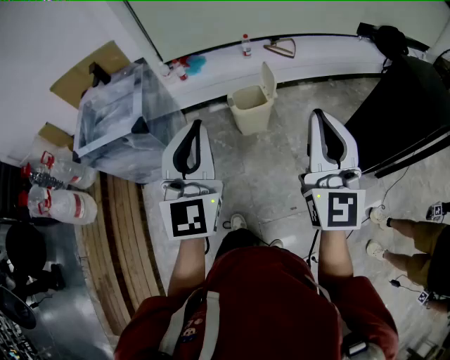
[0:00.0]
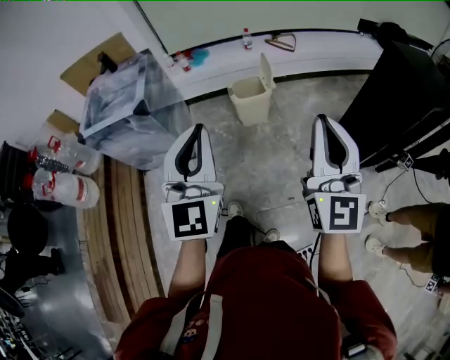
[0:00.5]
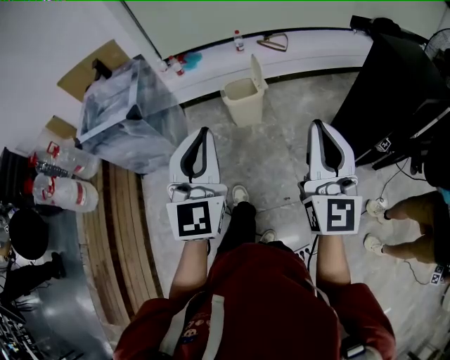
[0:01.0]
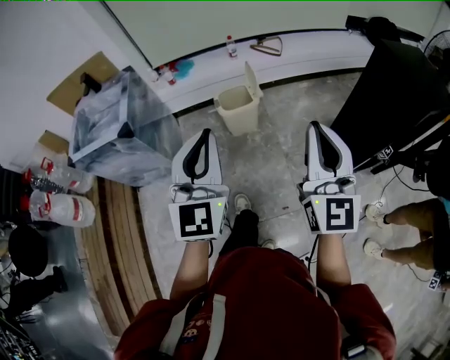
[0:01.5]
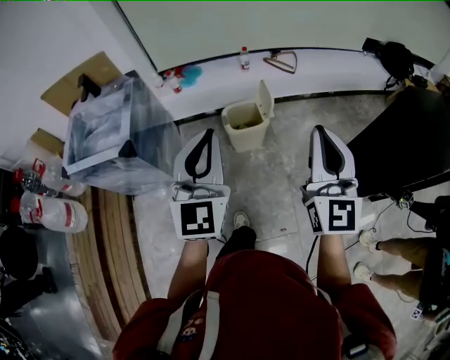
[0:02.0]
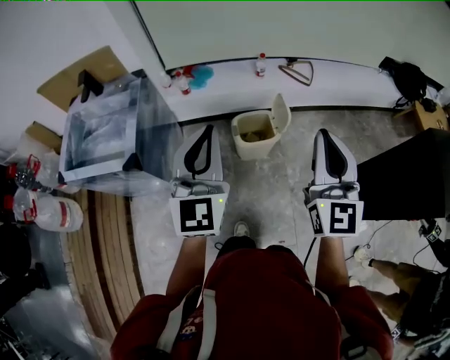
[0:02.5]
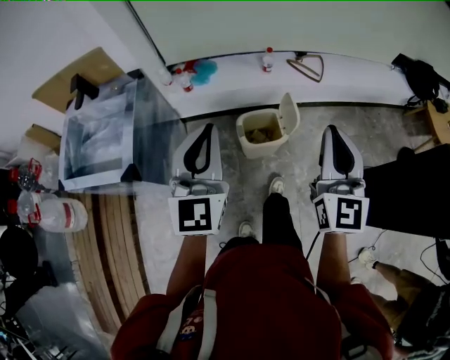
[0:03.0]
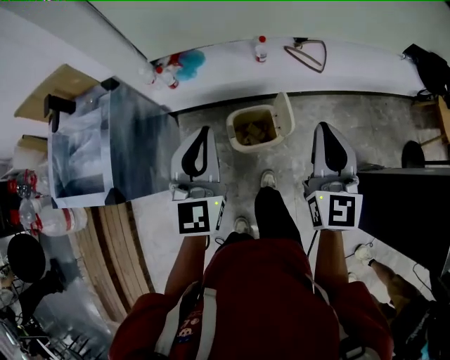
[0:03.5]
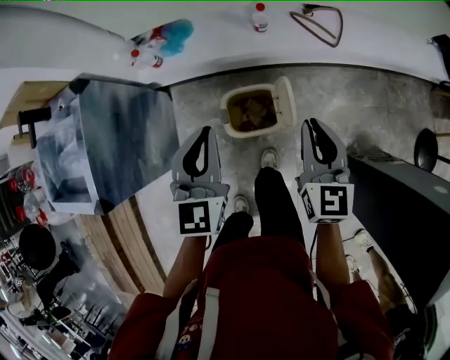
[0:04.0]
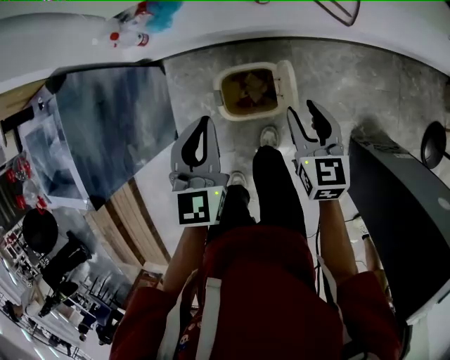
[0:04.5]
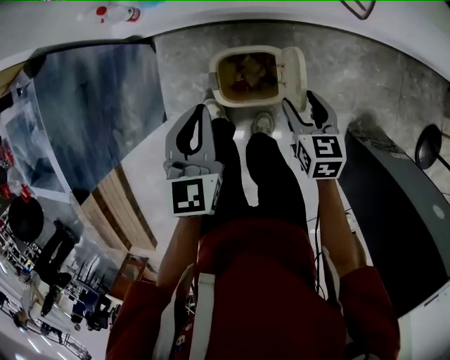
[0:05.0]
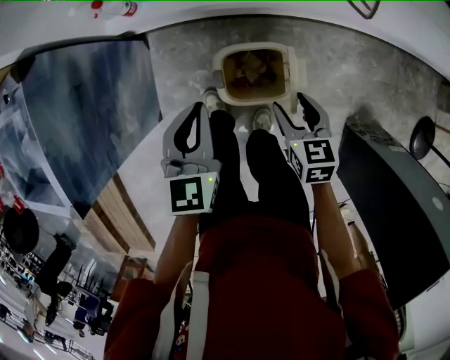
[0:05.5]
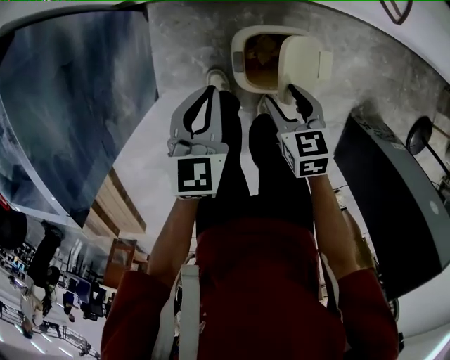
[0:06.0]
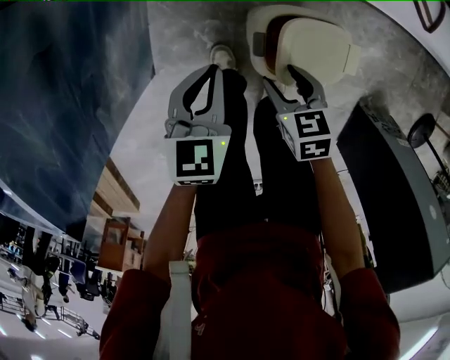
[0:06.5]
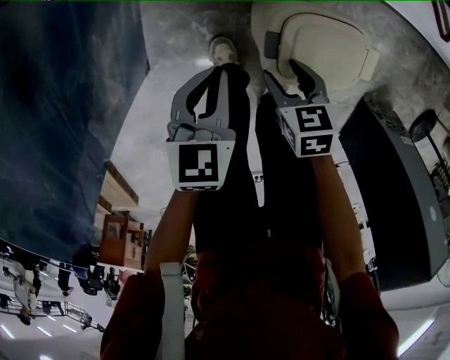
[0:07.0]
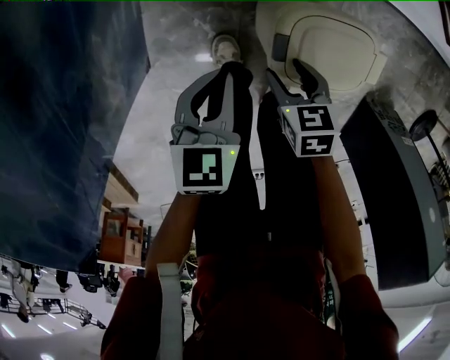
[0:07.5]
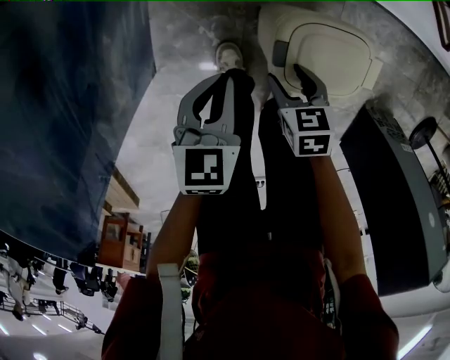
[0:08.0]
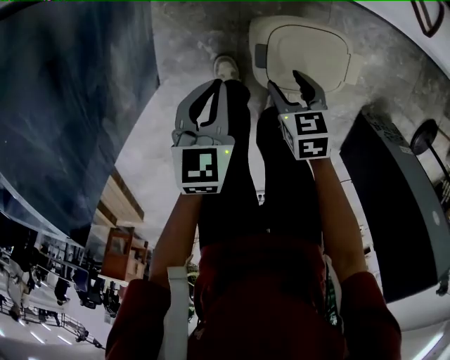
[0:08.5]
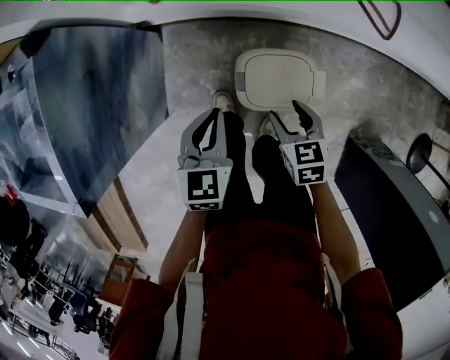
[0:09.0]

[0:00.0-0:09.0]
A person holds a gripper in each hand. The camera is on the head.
0:00.0 to 0:02.0: Both grippers move forward and to the right, some 15 cm.
0:02.0 to 0:04.5: Both grippers are carried forward, some 50 cm. The grippers both shift downward by roughly 35 cm. The left gripper points its fingers roughly 30 degrees further downward. The right gripper tips its fingers downward by approximately 40 degrees, and opens up.
0:04.5 to 0:07.0: Both grippers move downward and to the left, about 40 cm. The right gripper angles its fingers downward, by some 30 degrees. The left gripper changes its angle by some 30 degrees.
0:07.0 to 0:09.0: The right gripper moves upward and to the right, approximately 20 cm; the left gripper heads upward, covering about 15 cm.

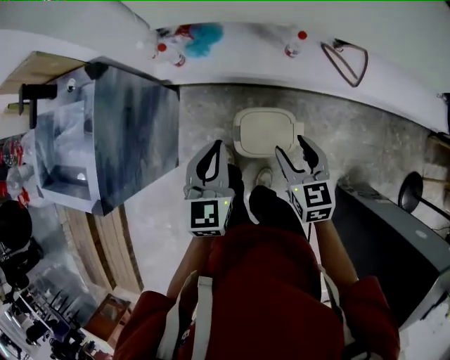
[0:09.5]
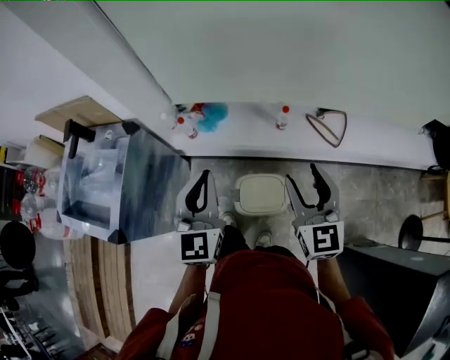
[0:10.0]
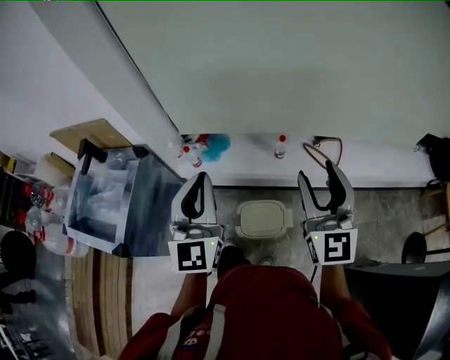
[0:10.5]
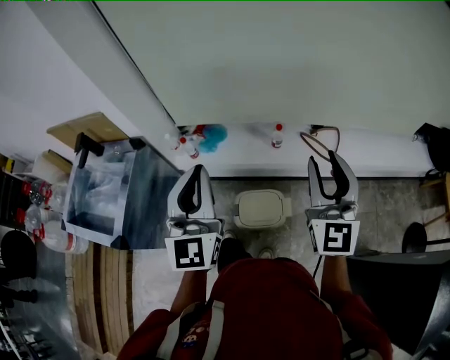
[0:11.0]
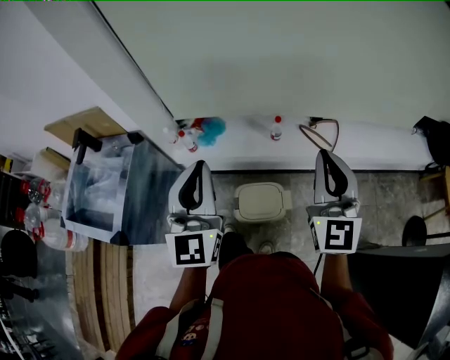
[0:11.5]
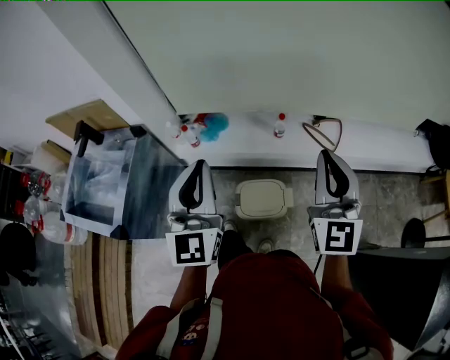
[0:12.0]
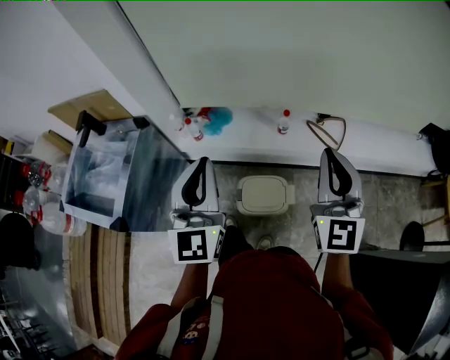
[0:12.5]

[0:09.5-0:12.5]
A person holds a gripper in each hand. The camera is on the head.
0:09.5 to 0:11.0: Both grippers travel together upward, approximately 30 cm. The right gripper tilts its fingers about 40 degrees upward, and closes its fingers; the left gripper points its fingers about 40 degrees further upward.
0:11.0 to 0:12.5: The right gripper closes up.

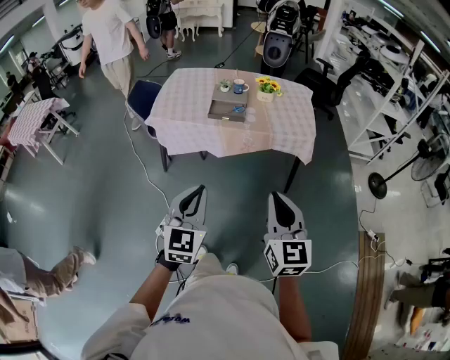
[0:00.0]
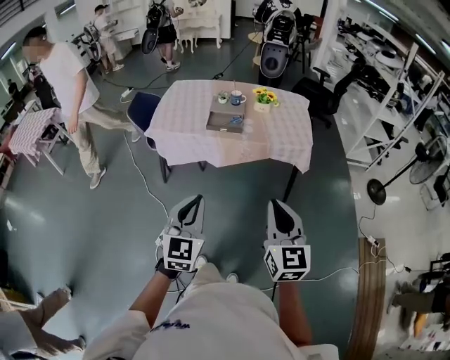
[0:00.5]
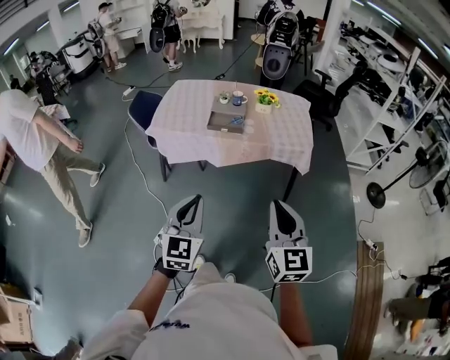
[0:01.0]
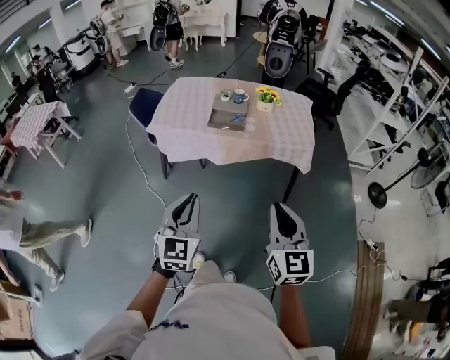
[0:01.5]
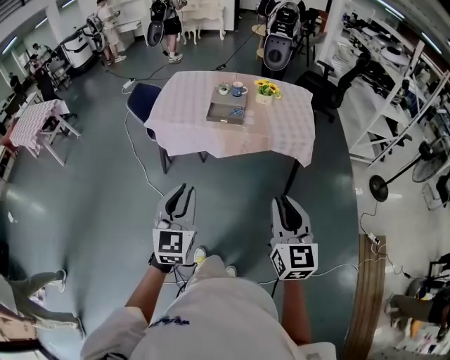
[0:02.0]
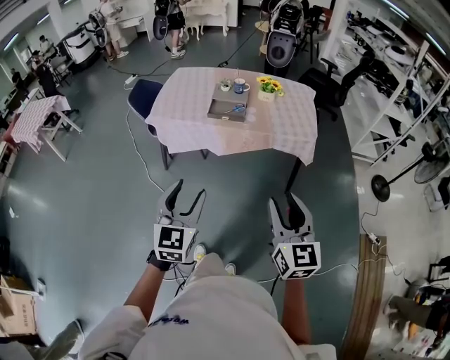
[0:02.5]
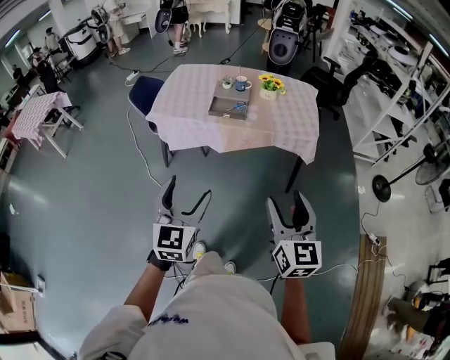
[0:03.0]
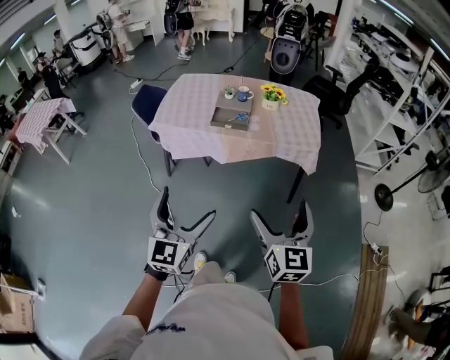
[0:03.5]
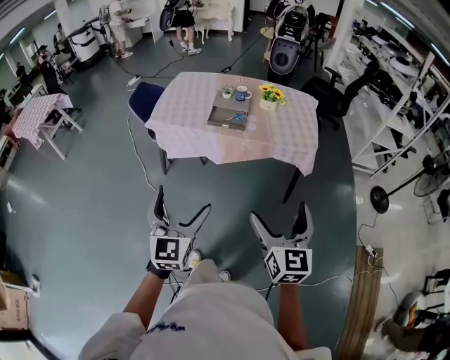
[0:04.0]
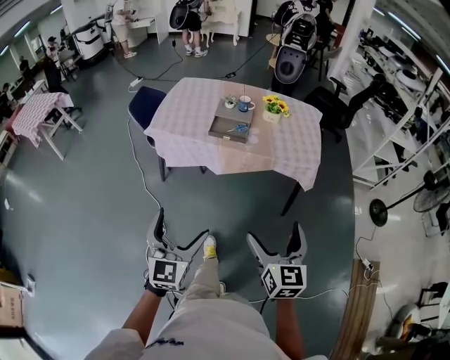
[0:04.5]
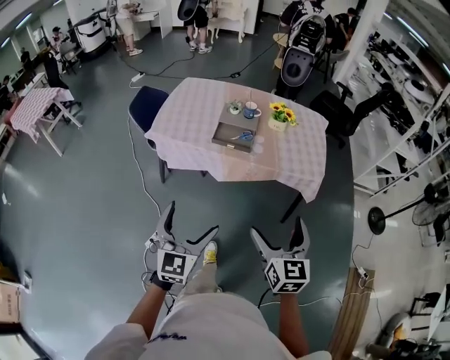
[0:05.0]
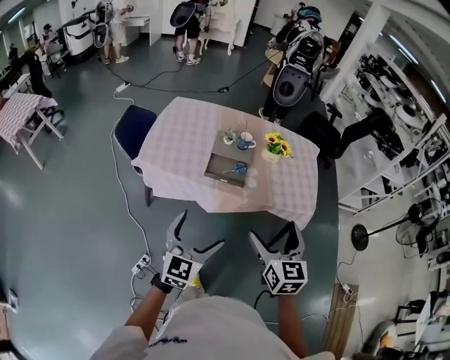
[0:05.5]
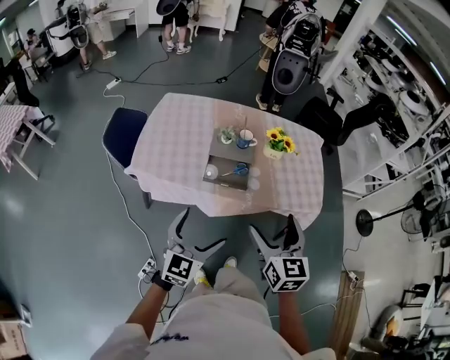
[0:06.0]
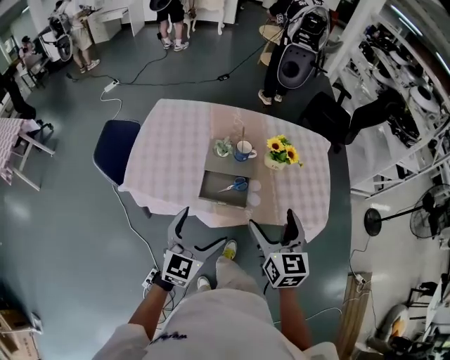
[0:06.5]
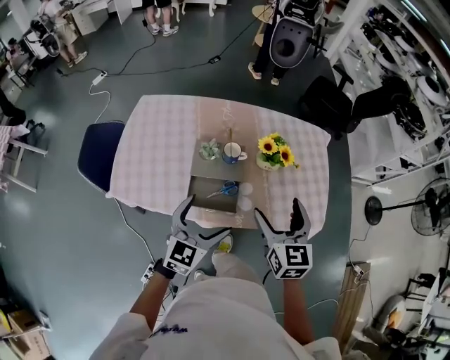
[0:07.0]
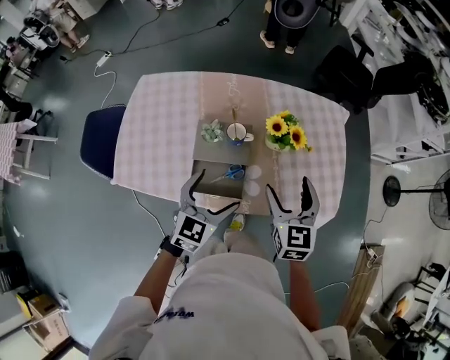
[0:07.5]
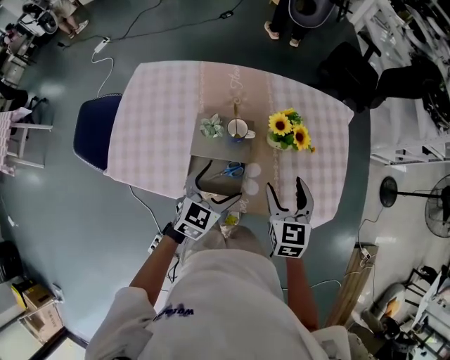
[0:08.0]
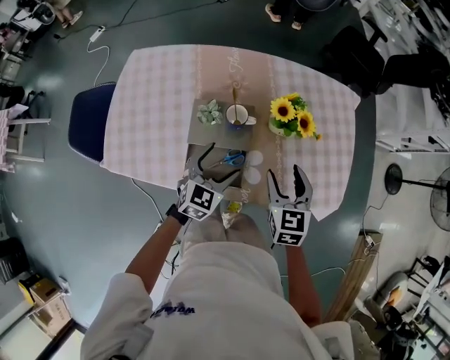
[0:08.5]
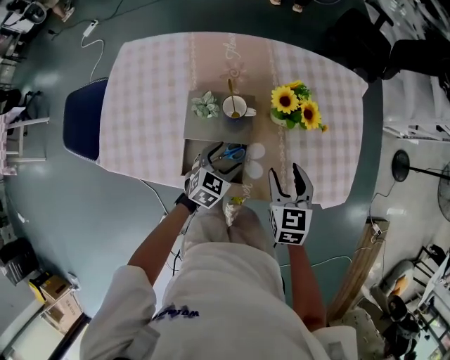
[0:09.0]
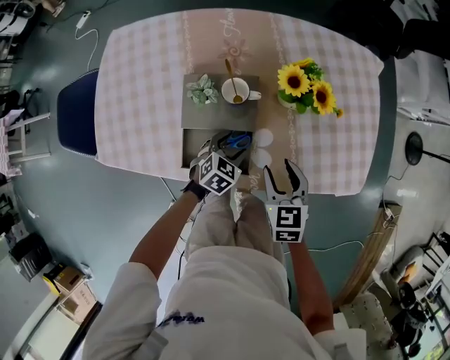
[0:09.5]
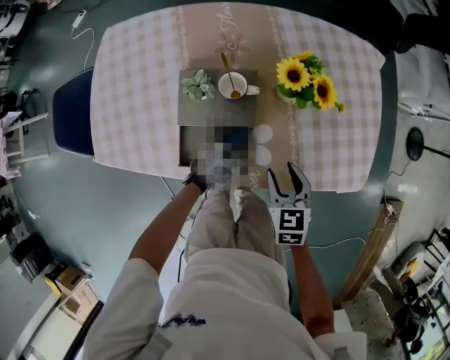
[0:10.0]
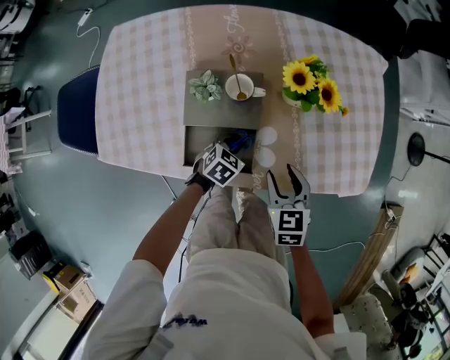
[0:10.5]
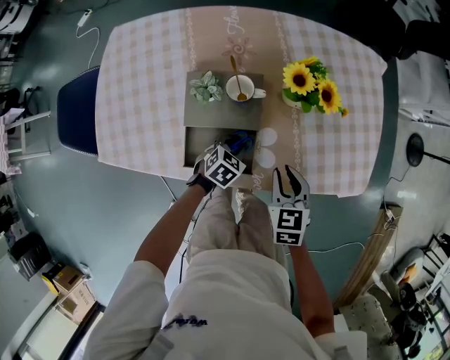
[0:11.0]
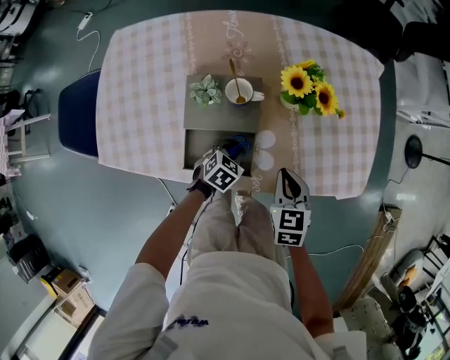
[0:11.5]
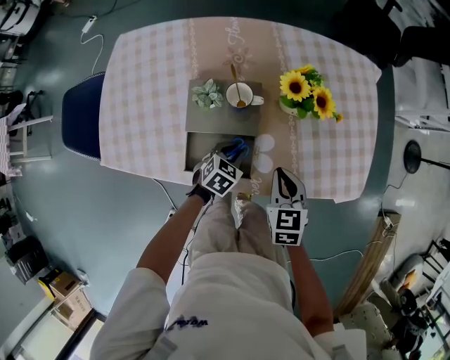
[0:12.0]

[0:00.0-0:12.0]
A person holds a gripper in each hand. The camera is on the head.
0:00.0 to 0:02.0: There are only small adjustments of the grippers.
0:02.0 to 0:04.0: The left gripper opens, while the right gripper ends up approximately 5 cm from where it was, and opens up.
0:04.0 to 0:06.0: Both grippers move forward, about 35 cm. The left gripper rotates approximately 20 degrees.
0:06.0 to 0:08.0: The right gripper heads forward and downward, covering about 35 cm; the left gripper travels forward by about 35 cm.
0:08.0 to 0:10.0: The right gripper is displaced downward by approximately 15 cm; the left gripper is displaced downward by about 25 cm, rotates roughly 30 degrees, and closes its fingers.
0:10.0 to 0:12.0: The right gripper closes up.

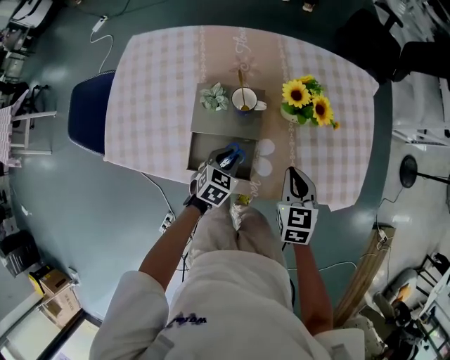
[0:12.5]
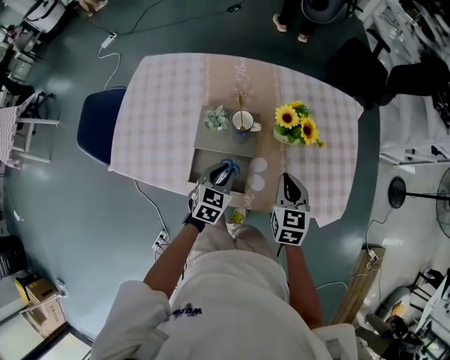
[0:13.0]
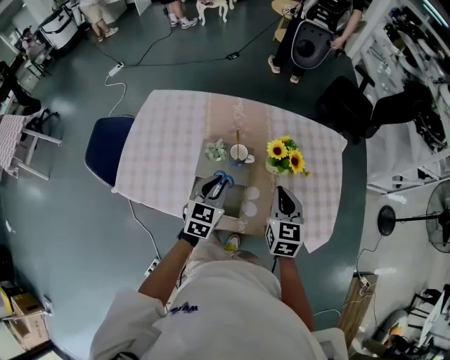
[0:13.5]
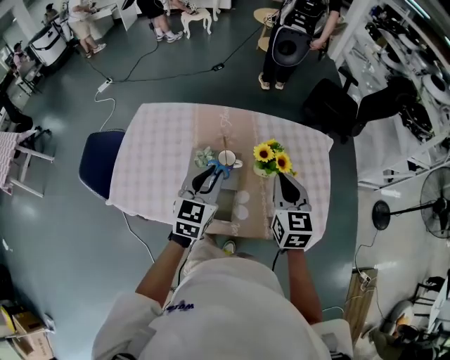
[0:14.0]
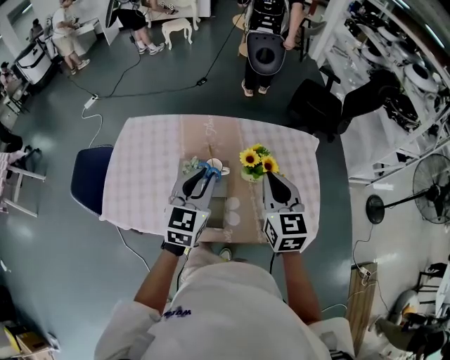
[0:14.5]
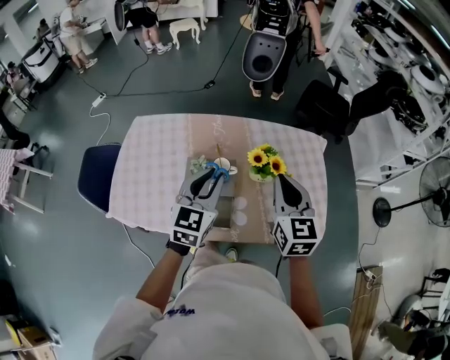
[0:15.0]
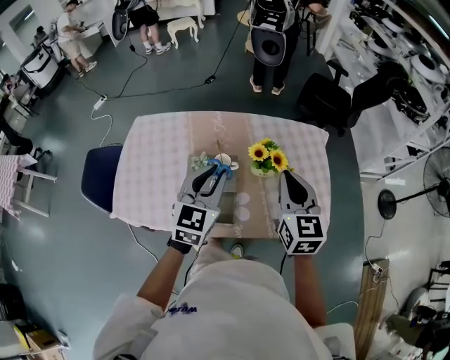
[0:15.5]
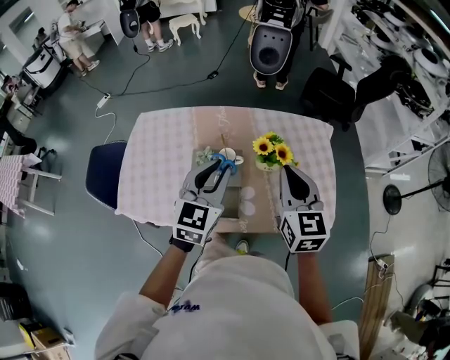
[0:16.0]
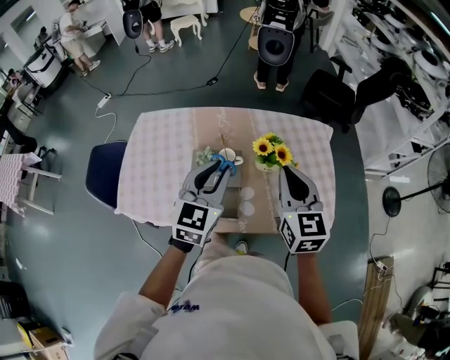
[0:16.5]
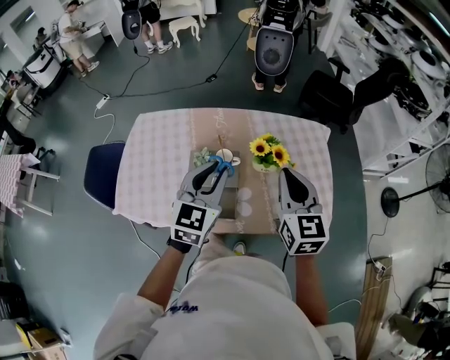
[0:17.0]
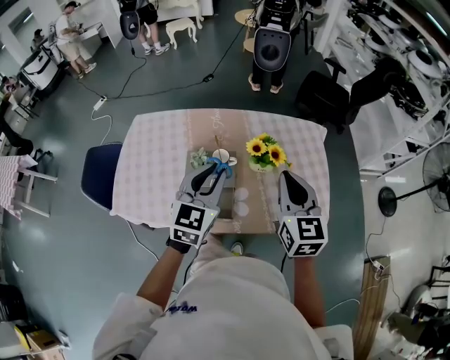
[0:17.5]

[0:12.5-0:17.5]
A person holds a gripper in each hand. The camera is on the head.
0:12.5 to 0:15.0: The grippers both shift upward by about 30 cm. The right gripper turns by some 30 degrees. The left gripper points its fingers roughly 40 degrees further upward.
0:15.0 to 0:17.5: The grippers stay close to where they were, moving slightly.
